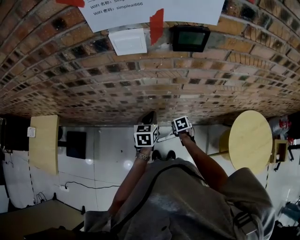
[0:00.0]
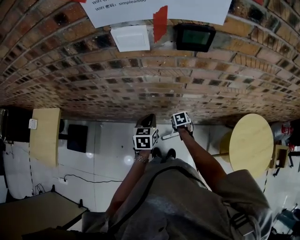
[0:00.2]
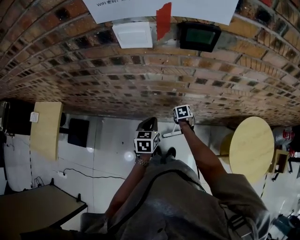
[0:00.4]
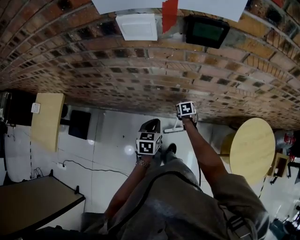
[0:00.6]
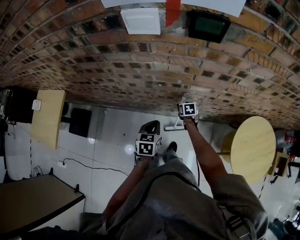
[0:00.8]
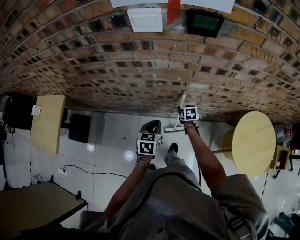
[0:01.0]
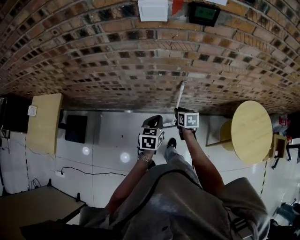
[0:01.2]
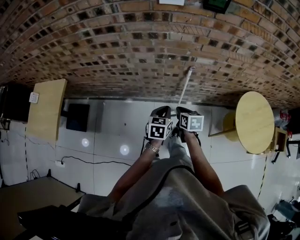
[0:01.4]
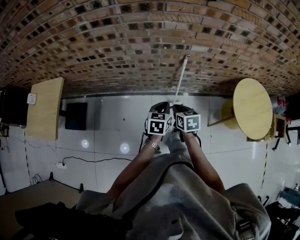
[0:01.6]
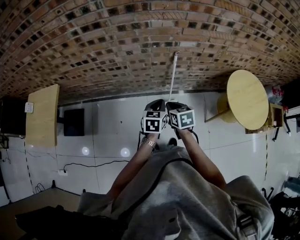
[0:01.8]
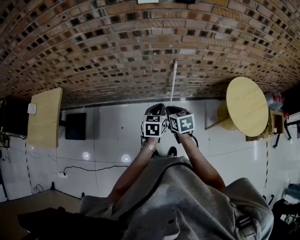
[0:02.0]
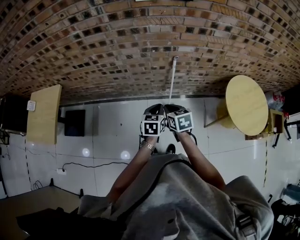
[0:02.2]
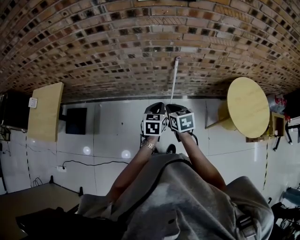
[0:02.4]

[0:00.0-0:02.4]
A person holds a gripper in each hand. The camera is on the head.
0:00.0 to 0:01.2: The right gripper travels upward, backward and to the left by approximately 15 cm, swivels approximately 20 degrees, and opens and closes again, while the left gripper heads backward, covering about 15 cm.
0:01.2 to 0:02.4: The right gripper moves backward and upward, some 20 cm. The left gripper goes some 10 cm backward.

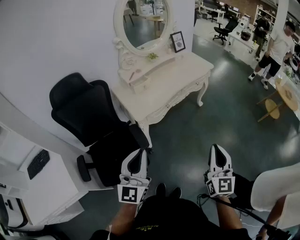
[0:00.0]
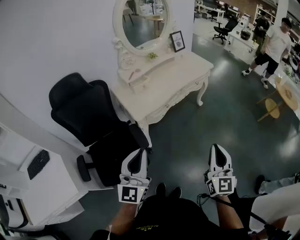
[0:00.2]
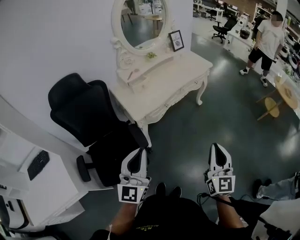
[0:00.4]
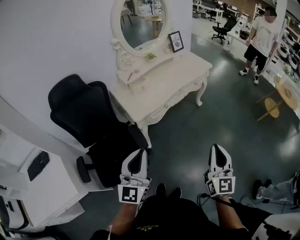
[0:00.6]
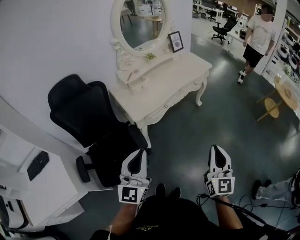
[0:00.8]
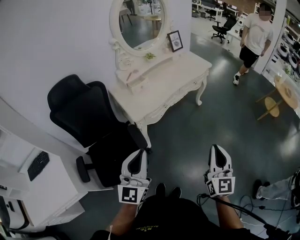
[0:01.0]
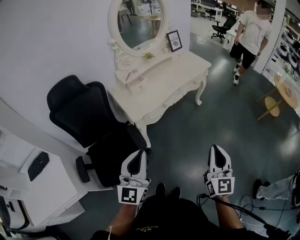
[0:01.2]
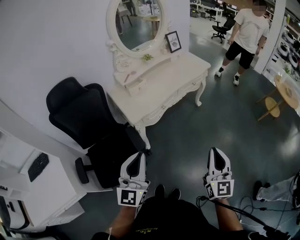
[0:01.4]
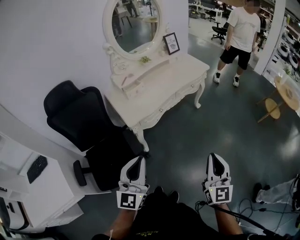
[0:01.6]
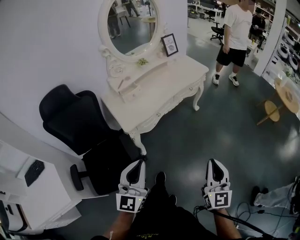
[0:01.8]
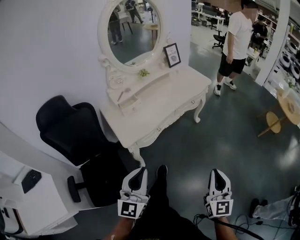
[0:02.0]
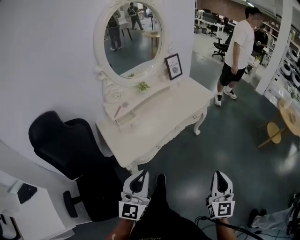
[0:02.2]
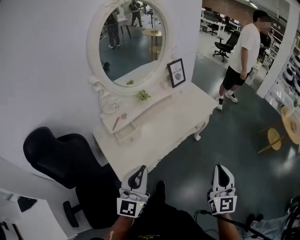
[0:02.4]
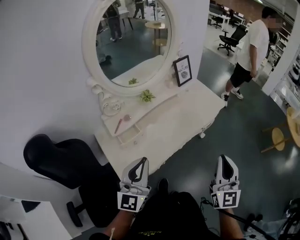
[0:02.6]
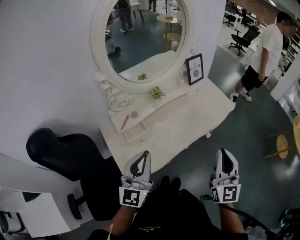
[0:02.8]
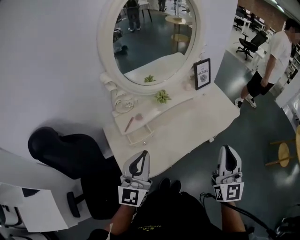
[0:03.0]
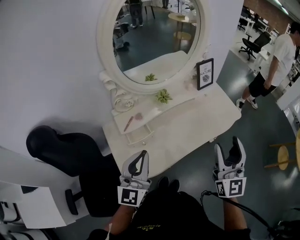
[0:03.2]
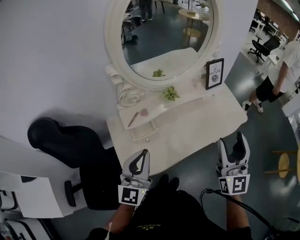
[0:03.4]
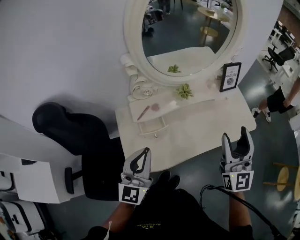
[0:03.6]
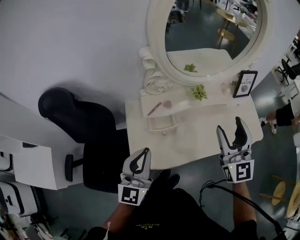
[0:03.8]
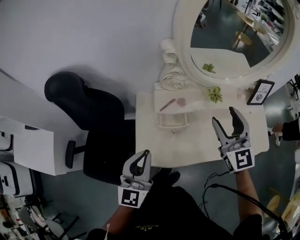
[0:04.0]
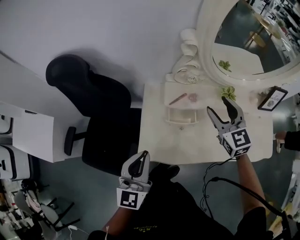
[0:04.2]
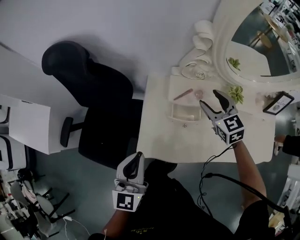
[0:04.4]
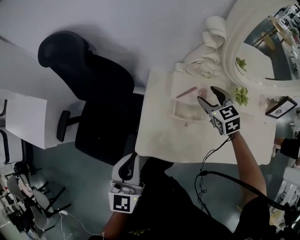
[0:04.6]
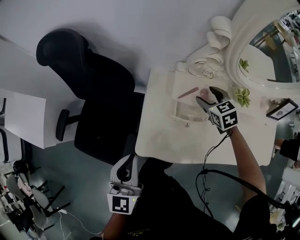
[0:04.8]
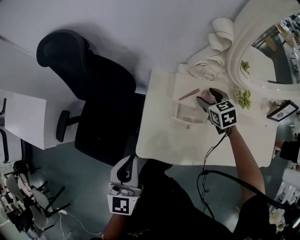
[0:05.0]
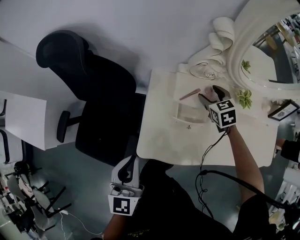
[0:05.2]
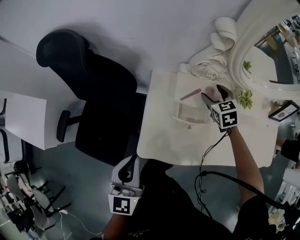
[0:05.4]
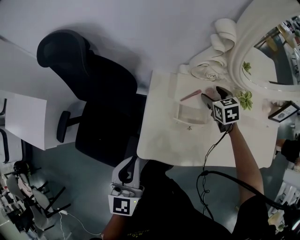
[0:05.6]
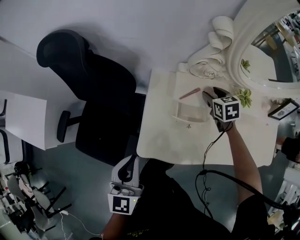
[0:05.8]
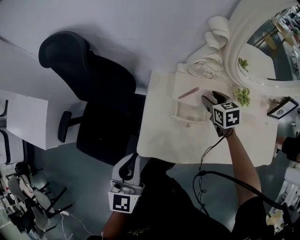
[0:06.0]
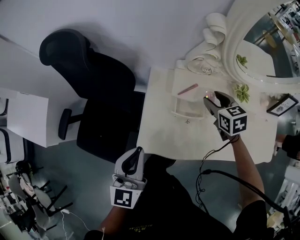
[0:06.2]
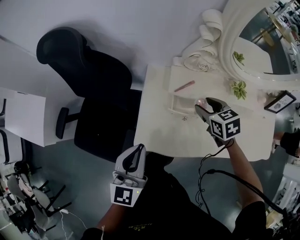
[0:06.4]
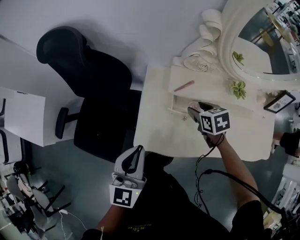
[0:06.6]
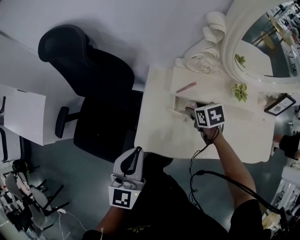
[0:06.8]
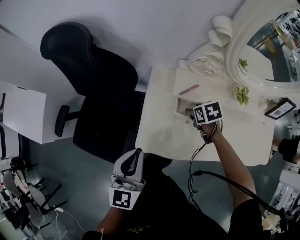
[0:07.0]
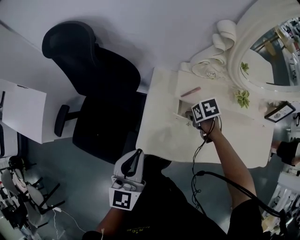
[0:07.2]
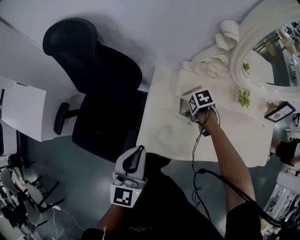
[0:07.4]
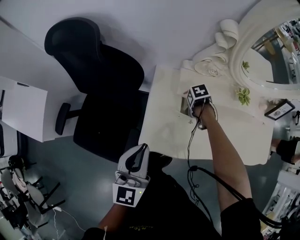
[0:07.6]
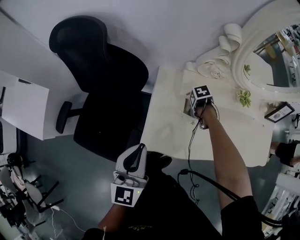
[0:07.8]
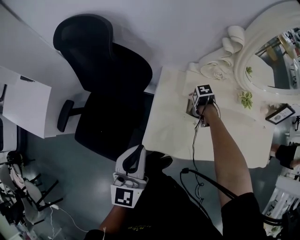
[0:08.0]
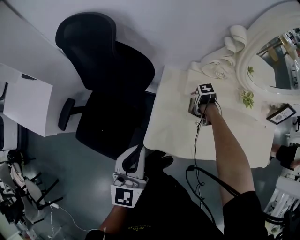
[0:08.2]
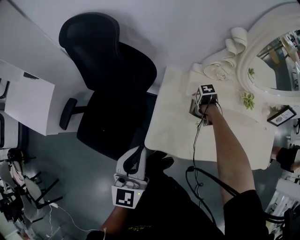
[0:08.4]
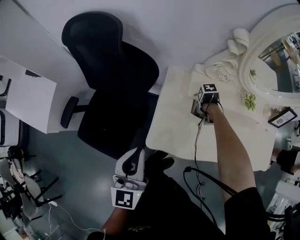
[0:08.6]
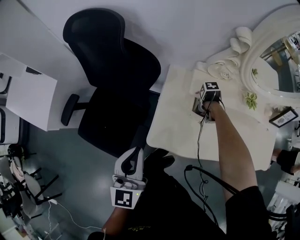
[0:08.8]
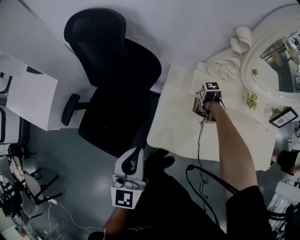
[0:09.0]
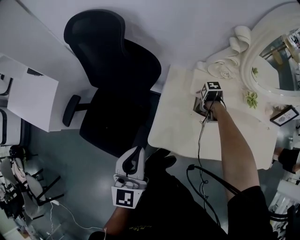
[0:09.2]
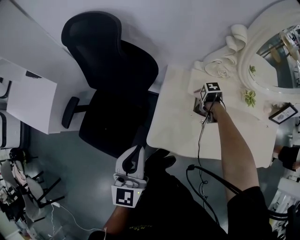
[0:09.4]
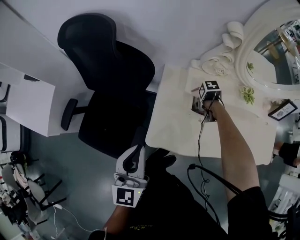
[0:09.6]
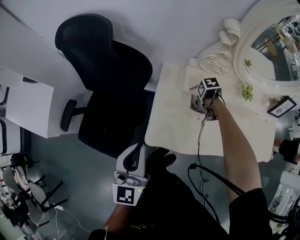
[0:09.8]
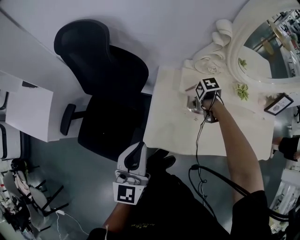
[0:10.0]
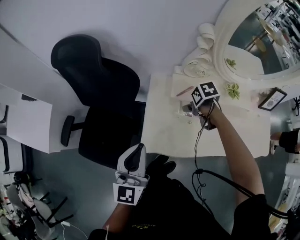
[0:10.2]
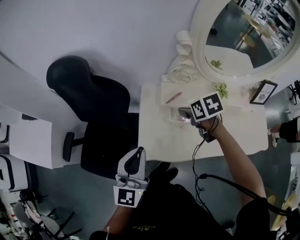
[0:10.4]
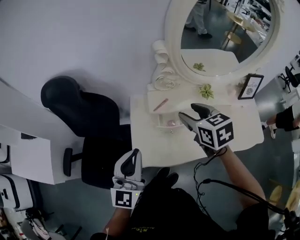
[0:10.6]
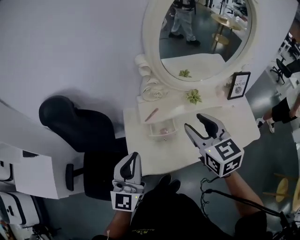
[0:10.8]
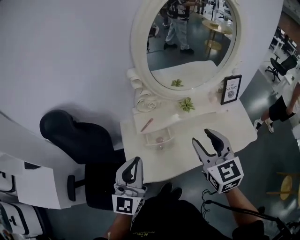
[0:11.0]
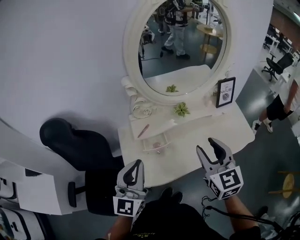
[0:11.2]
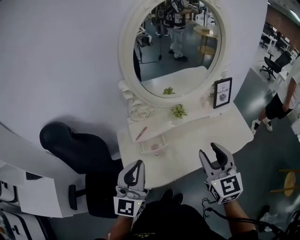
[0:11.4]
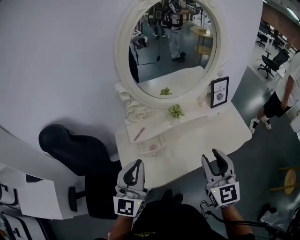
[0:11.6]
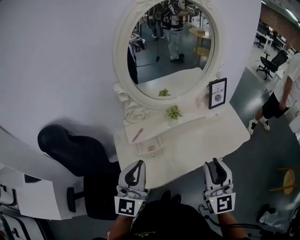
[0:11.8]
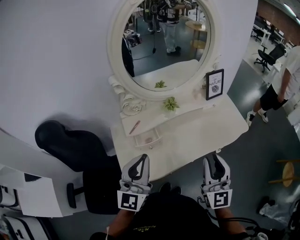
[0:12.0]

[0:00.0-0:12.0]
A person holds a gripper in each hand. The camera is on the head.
0:00.0 to 0:01.6: The right gripper moves roughly 5 cm, while the left gripper goes approximately 5 cm to the right.
0:01.6 to 0:03.0: Both grippers are carried forward, roughly 50 cm.
0:03.0 to 0:04.4: The right gripper changes place by about 50 cm, angles its fingers downward, by roughly 40 degrees, and opens up. Meanwhile the left gripper moves approximately 20 cm, and turns by approximately 40 degrees.
0:04.4 to 0:06.0: The right gripper heads downward, covering some 10 cm, and swivels roughly 20 degrees.
0:06.0 to 0:07.6: The right gripper shifts some 10 cm downward, and tilts its fingers some 40 degrees downward.
0:07.6 to 0:09.0: The left gripper ends up roughly 5 cm from where it was.
0:09.0 to 0:10.4: The right gripper travels upward by roughly 20 cm, and rotates about 50 degrees, while the left gripper changes place by about 10 cm.
0:10.4 to 0:12.0: The right gripper moves roughly 40 cm, points its fingers roughly 70 degrees further upward, and closes up; the left gripper moves some 20 cm, and swivels about 30 degrees.

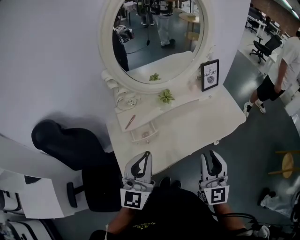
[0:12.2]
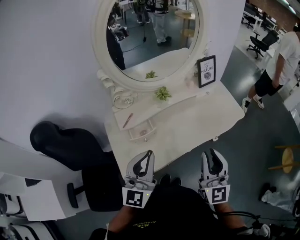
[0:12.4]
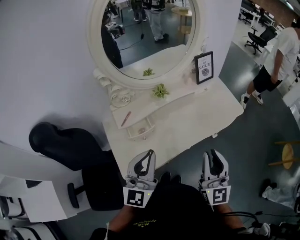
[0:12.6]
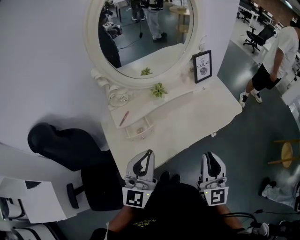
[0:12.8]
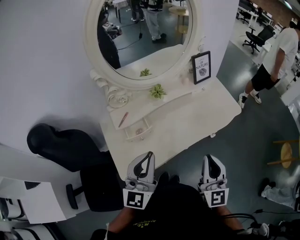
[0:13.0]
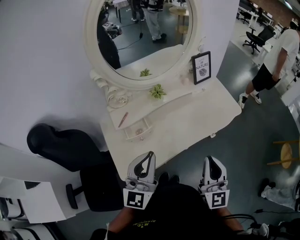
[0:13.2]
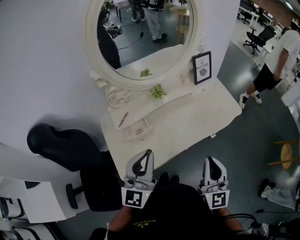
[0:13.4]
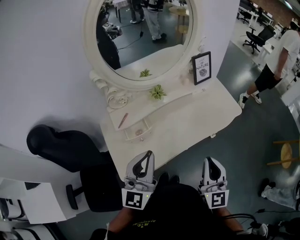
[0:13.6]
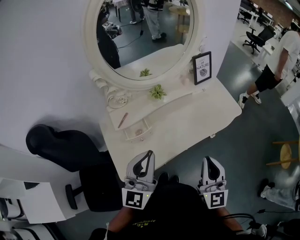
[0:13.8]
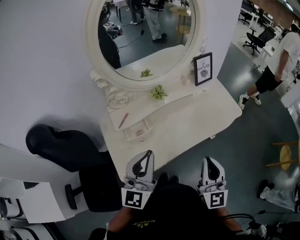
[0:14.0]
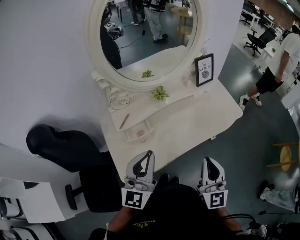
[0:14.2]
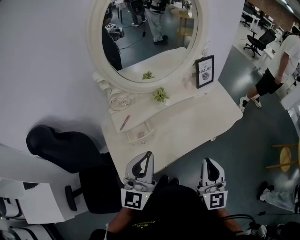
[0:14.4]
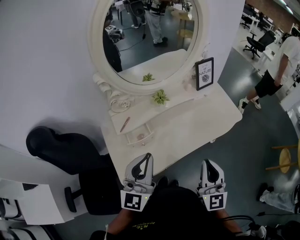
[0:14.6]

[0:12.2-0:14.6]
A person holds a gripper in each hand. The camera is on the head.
0:12.2 to 0:14.6: The grippers make only small movements.

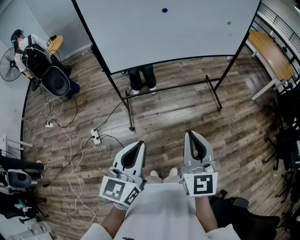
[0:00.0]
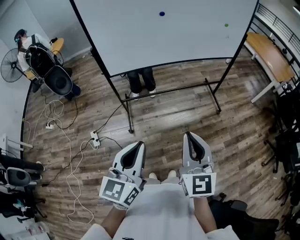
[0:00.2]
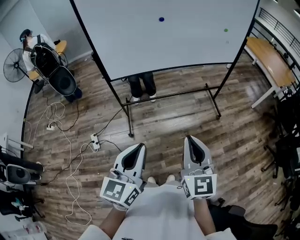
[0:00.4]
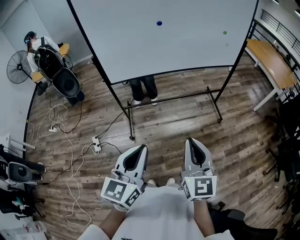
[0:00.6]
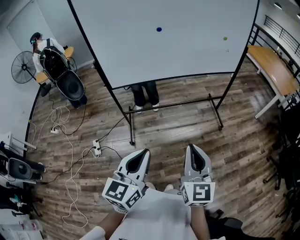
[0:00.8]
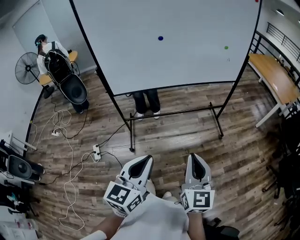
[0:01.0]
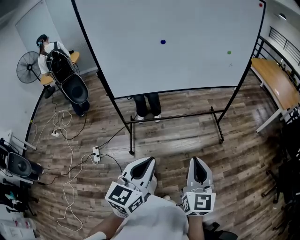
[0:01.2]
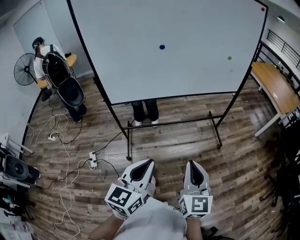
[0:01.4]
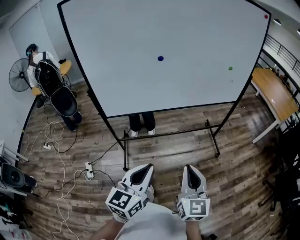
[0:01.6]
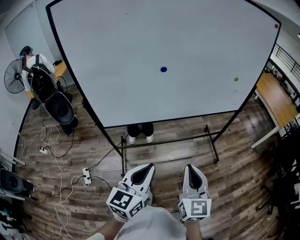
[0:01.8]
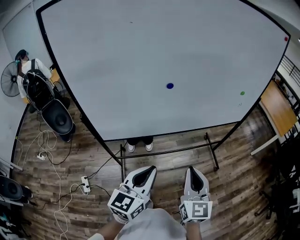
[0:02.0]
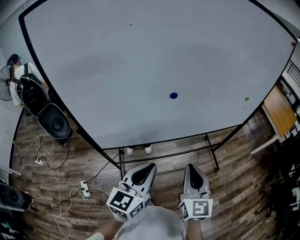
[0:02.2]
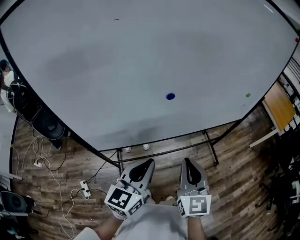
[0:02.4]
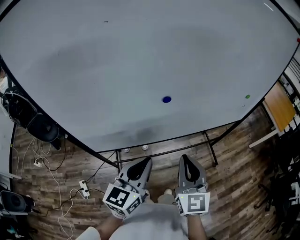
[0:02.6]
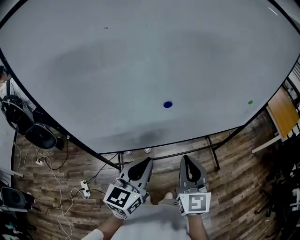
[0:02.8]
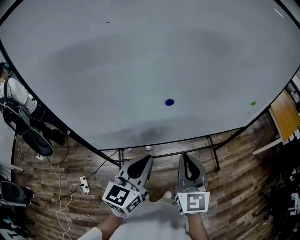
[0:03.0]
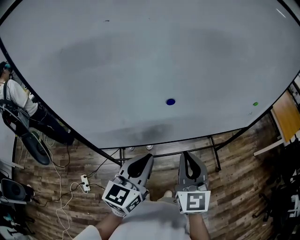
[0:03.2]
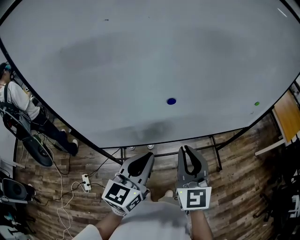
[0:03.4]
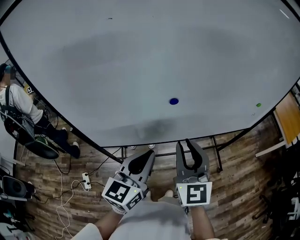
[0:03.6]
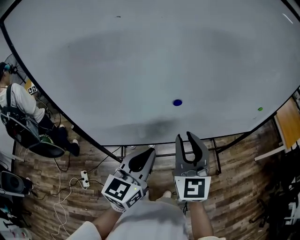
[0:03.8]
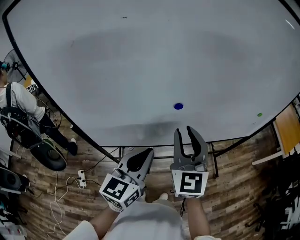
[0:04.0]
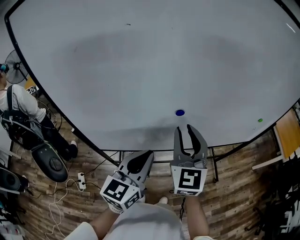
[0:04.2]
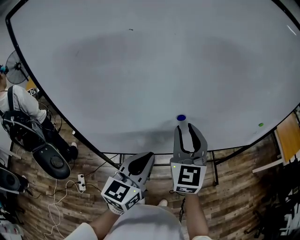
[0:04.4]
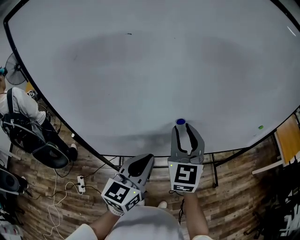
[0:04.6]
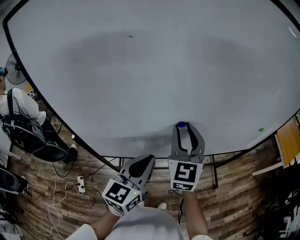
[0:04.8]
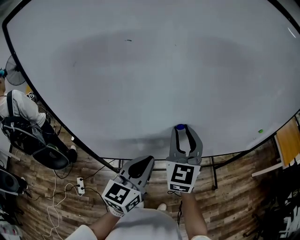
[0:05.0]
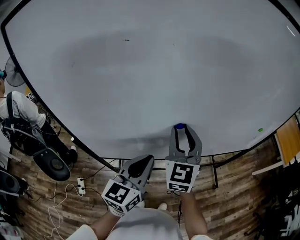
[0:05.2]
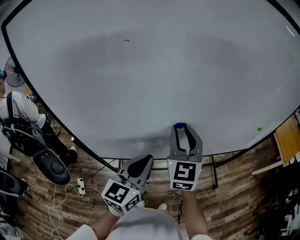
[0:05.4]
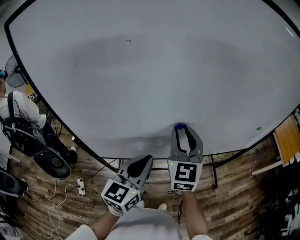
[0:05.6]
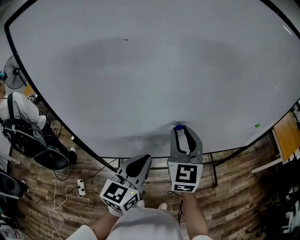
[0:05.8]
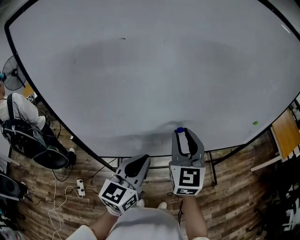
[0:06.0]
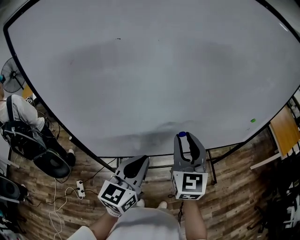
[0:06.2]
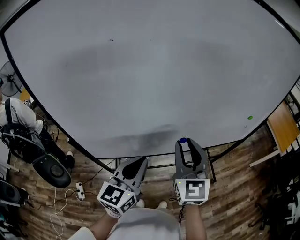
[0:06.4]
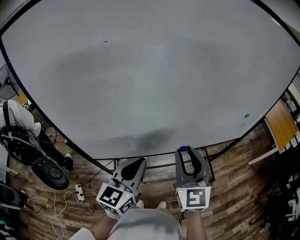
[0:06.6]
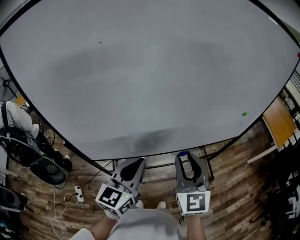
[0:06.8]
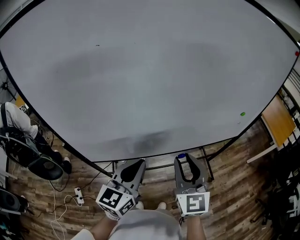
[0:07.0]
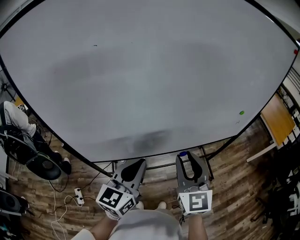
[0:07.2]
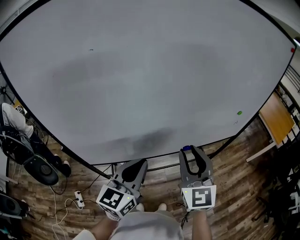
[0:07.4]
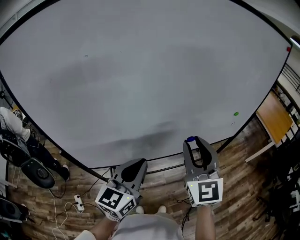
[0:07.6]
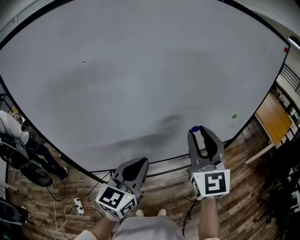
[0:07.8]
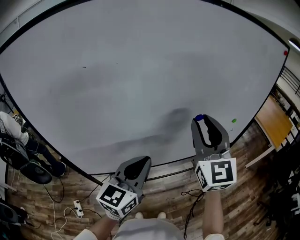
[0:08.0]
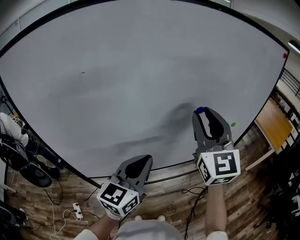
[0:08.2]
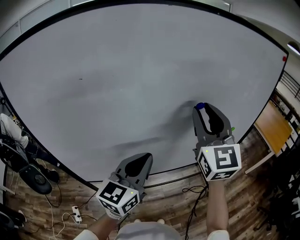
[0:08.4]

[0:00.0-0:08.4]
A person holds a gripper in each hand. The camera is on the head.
0:00.0 to 0:01.4: Both grippers move to the right and forward, about 15 cm.
0:01.4 to 0:02.8: Both grippers are carried forward, some 40 cm.
0:02.8 to 0:04.2: The right gripper goes some 15 cm forward, upward and to the left, and opens.
0:04.2 to 0:05.6: The grippers make only small movements.
0:05.6 to 0:07.0: The left gripper moves about 5 cm; the right gripper goes some 15 cm backward and to the right.
0:07.0 to 0:08.4: The right gripper travels upward and forward by some 25 cm, while the left gripper goes about 15 cm upward, forward and to the right.
